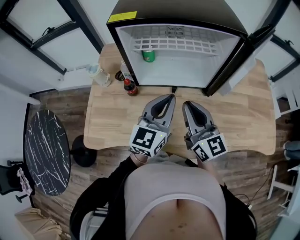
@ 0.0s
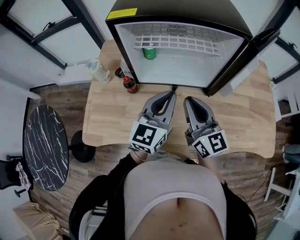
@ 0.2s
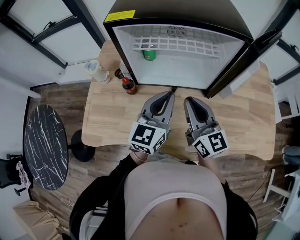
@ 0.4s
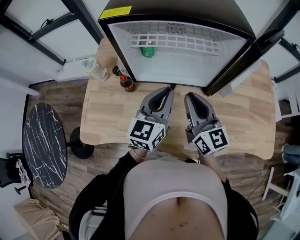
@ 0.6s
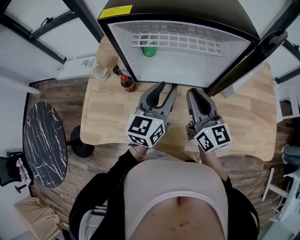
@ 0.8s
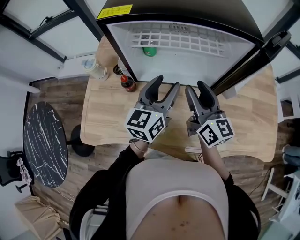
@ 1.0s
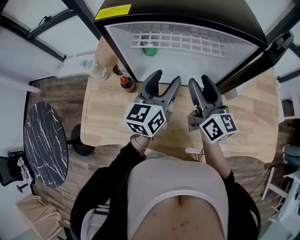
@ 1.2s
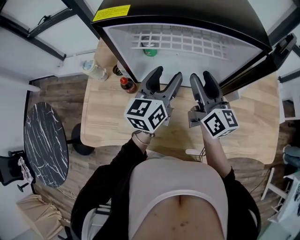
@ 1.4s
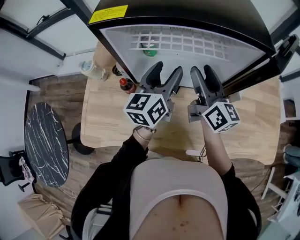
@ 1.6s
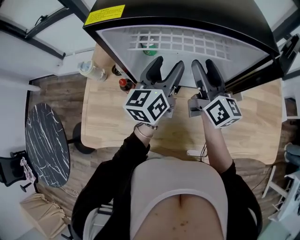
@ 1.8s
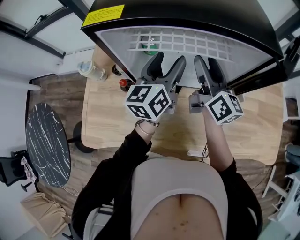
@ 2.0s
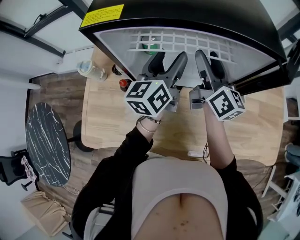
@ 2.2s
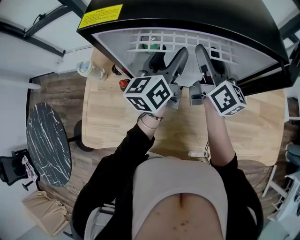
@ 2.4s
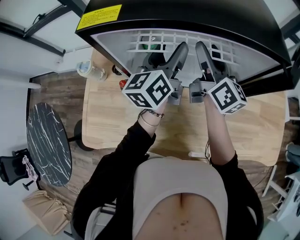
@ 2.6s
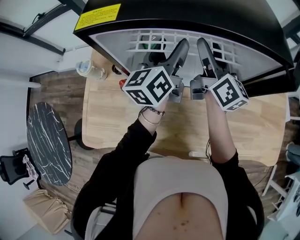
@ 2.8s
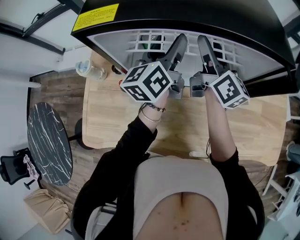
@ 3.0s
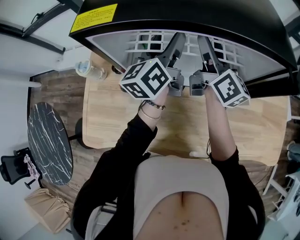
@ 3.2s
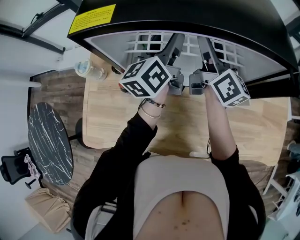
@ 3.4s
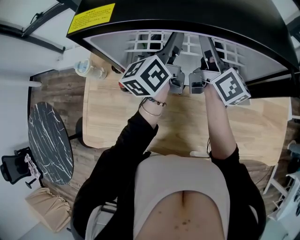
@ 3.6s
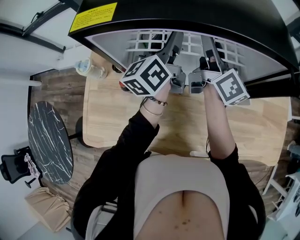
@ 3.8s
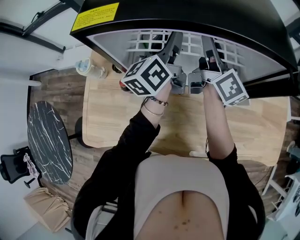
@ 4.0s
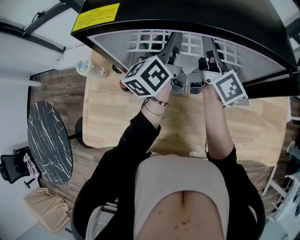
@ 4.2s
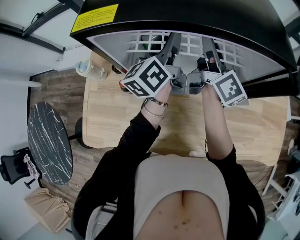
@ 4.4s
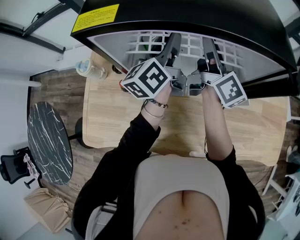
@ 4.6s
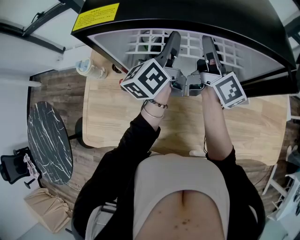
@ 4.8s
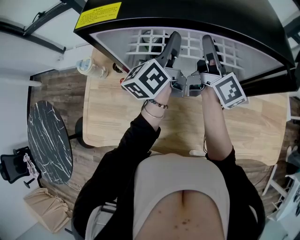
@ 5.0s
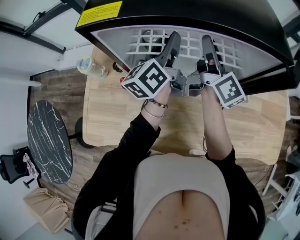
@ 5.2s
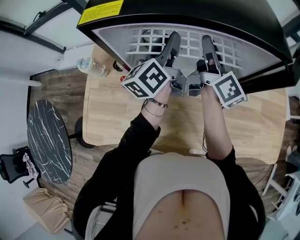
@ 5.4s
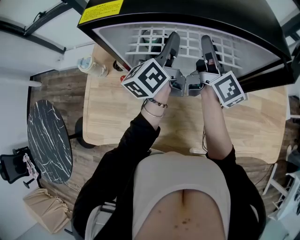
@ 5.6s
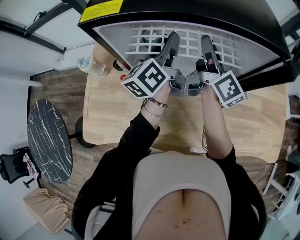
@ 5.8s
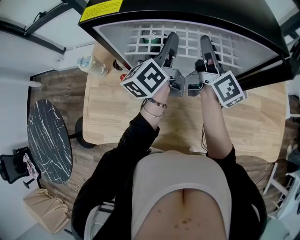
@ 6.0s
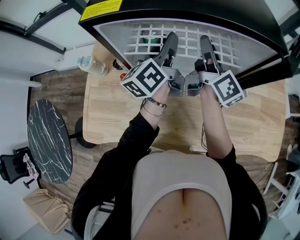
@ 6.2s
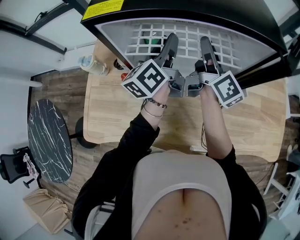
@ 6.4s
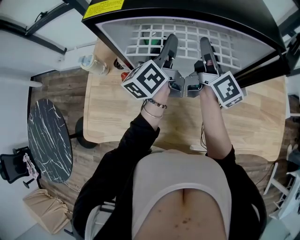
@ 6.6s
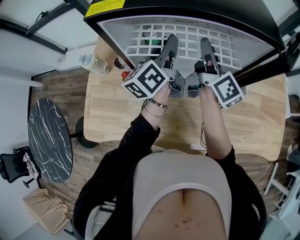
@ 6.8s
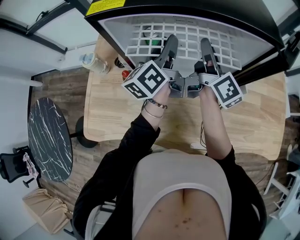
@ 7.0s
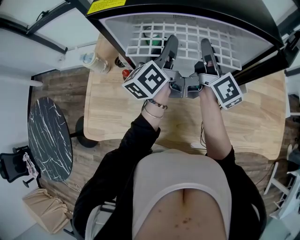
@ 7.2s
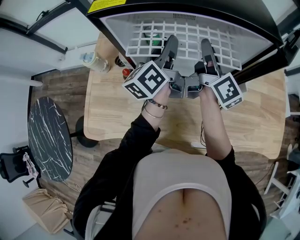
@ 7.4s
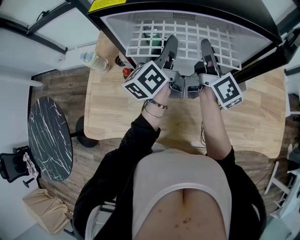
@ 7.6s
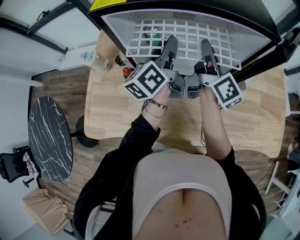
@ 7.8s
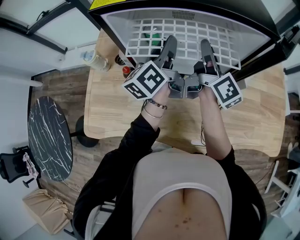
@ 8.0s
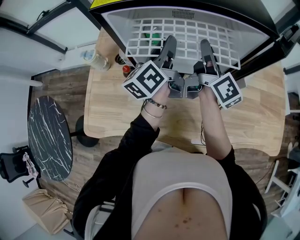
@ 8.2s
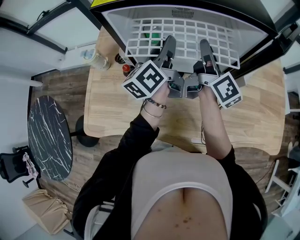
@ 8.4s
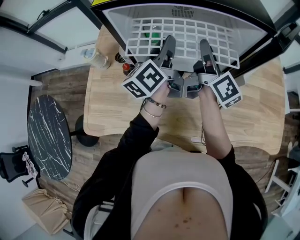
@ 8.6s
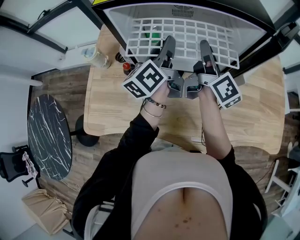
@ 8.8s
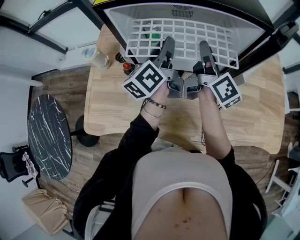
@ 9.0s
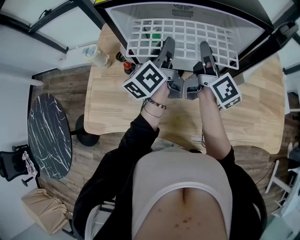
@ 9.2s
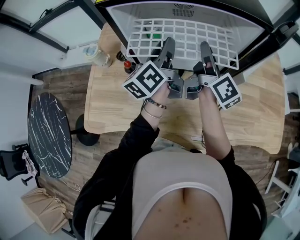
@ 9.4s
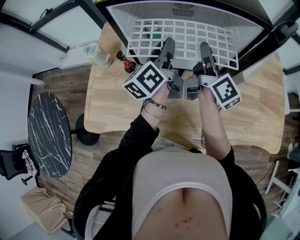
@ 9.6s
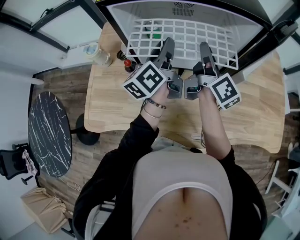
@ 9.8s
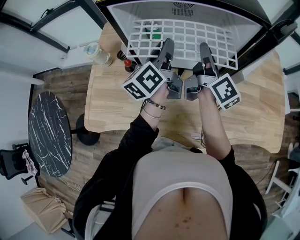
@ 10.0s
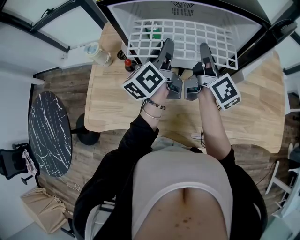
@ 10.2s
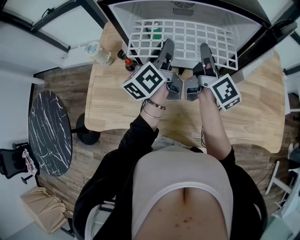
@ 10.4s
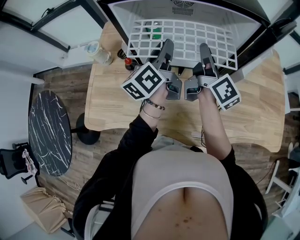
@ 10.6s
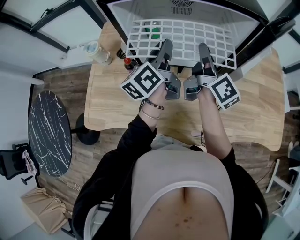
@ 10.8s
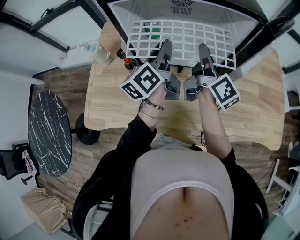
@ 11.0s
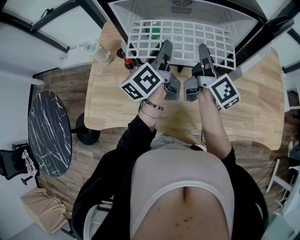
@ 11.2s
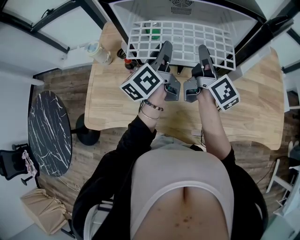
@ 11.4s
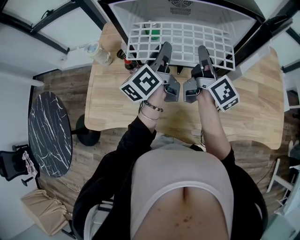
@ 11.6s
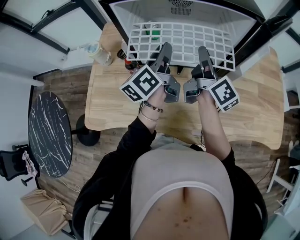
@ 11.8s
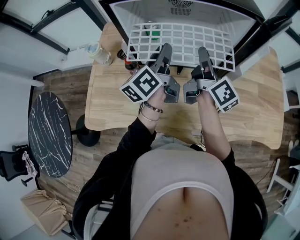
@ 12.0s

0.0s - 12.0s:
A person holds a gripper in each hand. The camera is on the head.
0.0s - 1.6s: The two grippers go approximately 15 cm forward. The left gripper swivels roughly 20 degrees, and opens; the right gripper turns by some 20 degrees, and opens its fingers.
1.6s - 3.0s: Both grippers move forward, about 10 cm.
3.0s - 4.4s: The right gripper closes its fingers.
4.4s - 6.0s: There are only small adjustments of the grippers.
6.0s - 7.6s: The grippers move only a little.
7.6s - 10.4s: The grippers move only a little.
10.4s - 12.0s: The grippers make only small movements.

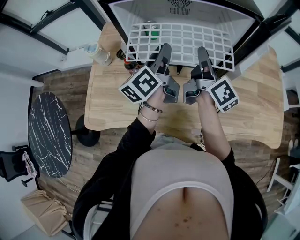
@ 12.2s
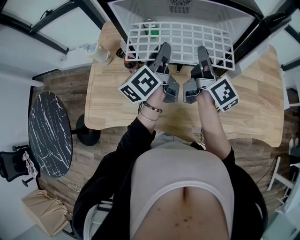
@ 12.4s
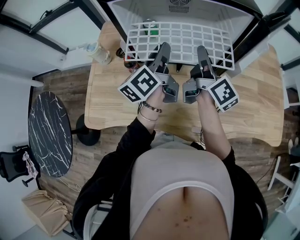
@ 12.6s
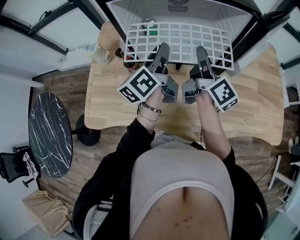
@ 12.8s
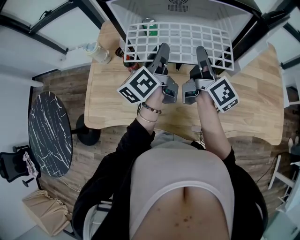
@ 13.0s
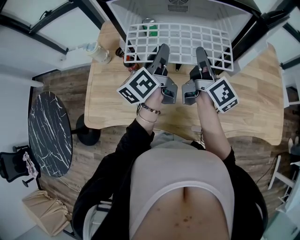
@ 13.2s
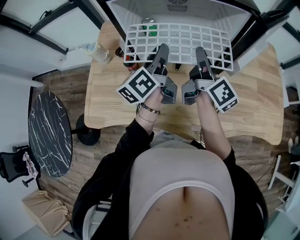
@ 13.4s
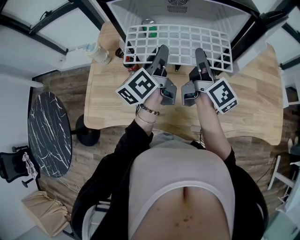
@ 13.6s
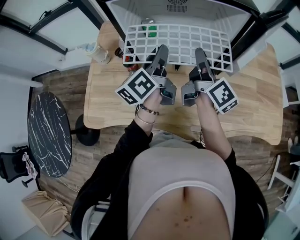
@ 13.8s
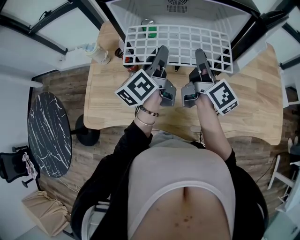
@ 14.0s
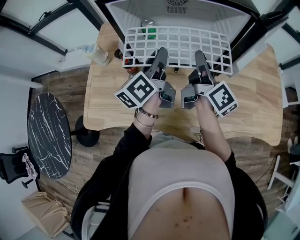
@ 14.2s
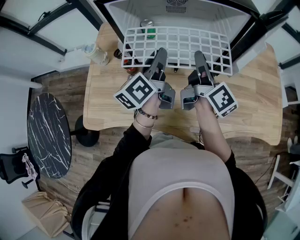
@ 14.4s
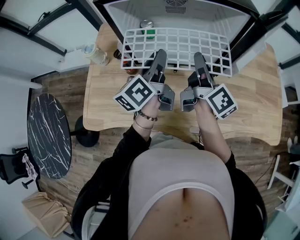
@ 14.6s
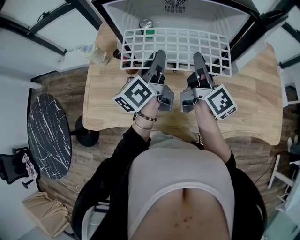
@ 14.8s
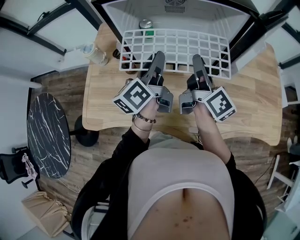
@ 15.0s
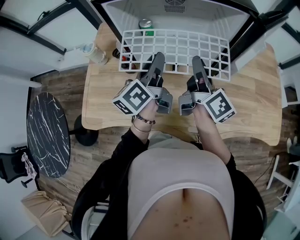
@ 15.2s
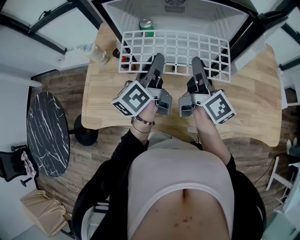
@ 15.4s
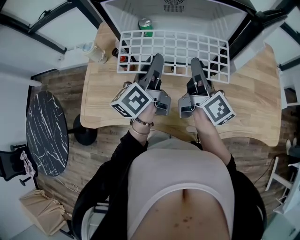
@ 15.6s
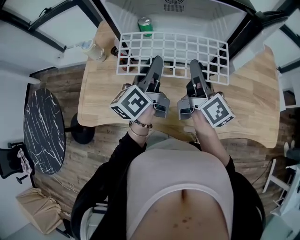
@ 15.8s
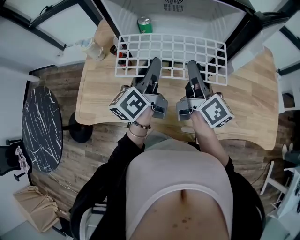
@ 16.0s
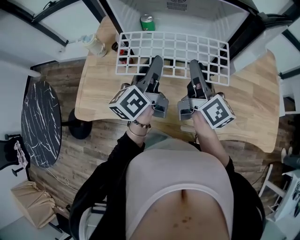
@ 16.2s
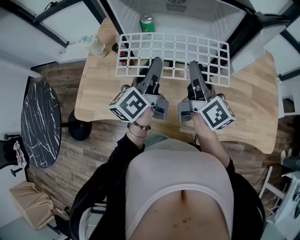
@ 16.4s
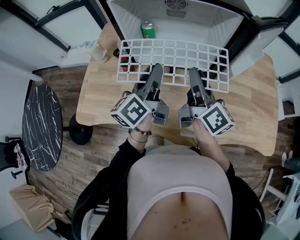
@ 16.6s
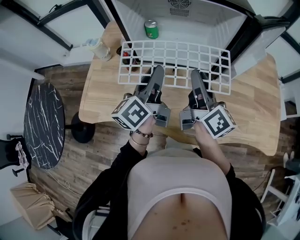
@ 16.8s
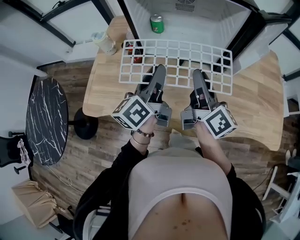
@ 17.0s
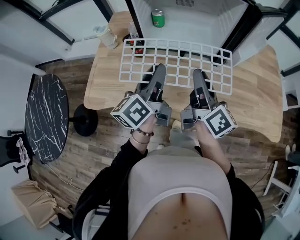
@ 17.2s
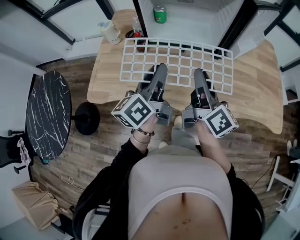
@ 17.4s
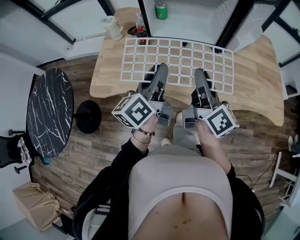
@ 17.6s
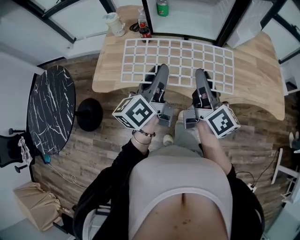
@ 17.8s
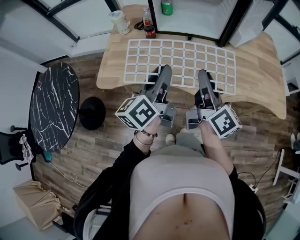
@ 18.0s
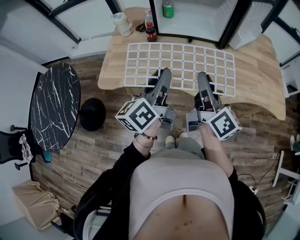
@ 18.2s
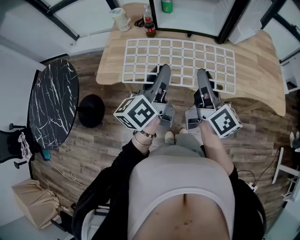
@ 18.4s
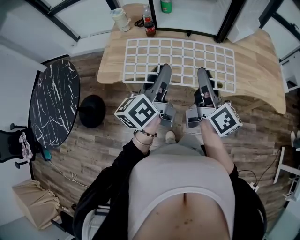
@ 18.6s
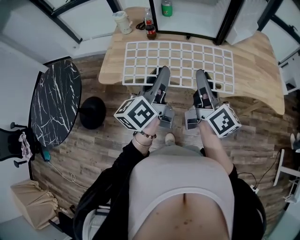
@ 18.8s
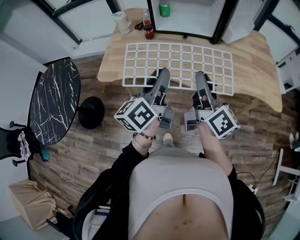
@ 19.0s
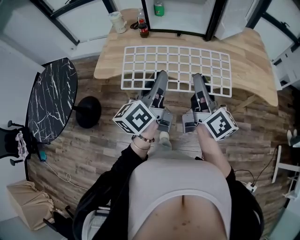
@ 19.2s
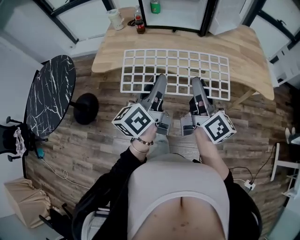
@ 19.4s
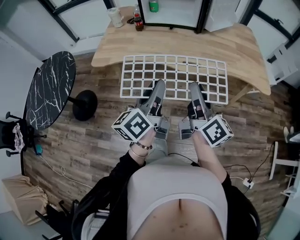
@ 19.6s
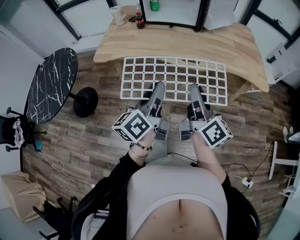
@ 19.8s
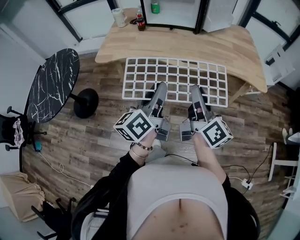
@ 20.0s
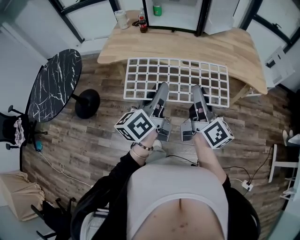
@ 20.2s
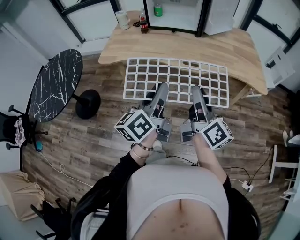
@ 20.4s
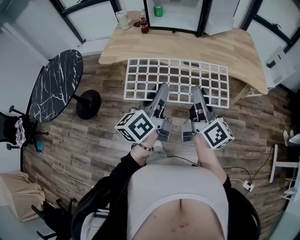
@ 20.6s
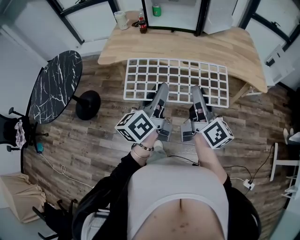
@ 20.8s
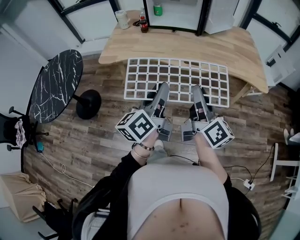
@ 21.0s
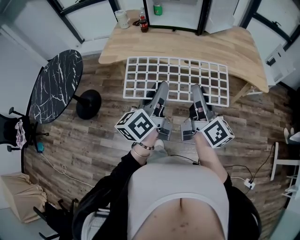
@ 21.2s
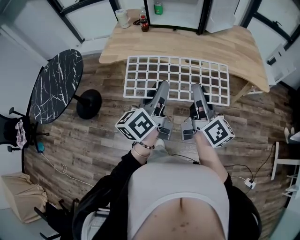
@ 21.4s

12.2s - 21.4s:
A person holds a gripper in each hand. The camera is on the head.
12.2s - 15.2s: There are only small adjustments of the grippers.
15.2s - 16.8s: The grippers both shift backward by about 5 cm.
16.8s - 18.4s: Both grippers move backward, some 25 cm.
18.4s - 19.8s: The grippers both shift backward by about 25 cm.
19.8s - 21.4s: There are only small adjustments of the grippers.

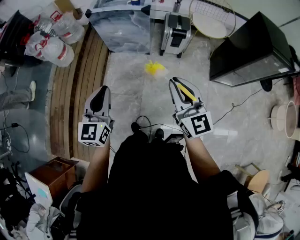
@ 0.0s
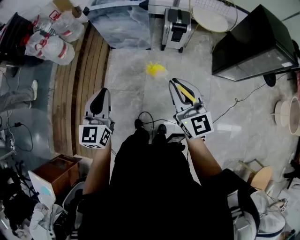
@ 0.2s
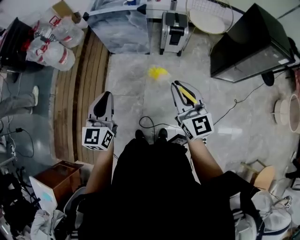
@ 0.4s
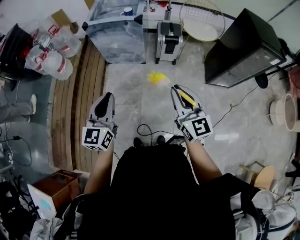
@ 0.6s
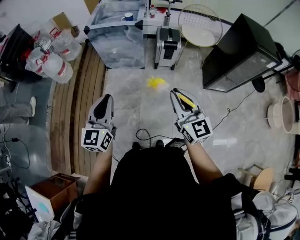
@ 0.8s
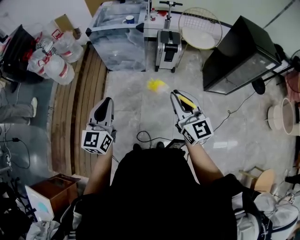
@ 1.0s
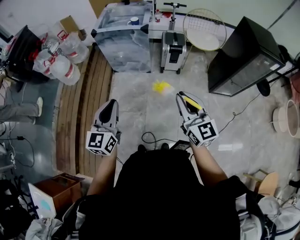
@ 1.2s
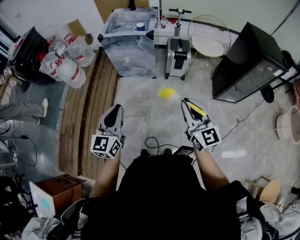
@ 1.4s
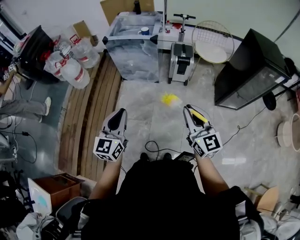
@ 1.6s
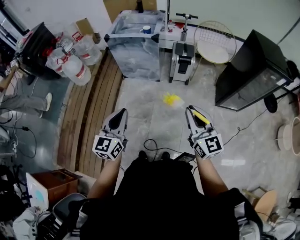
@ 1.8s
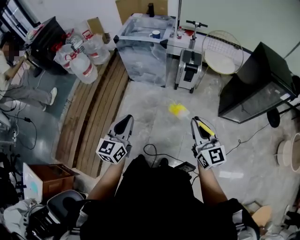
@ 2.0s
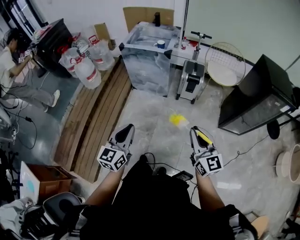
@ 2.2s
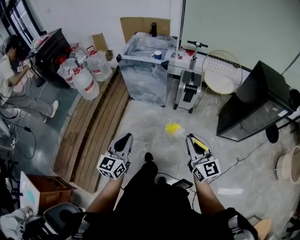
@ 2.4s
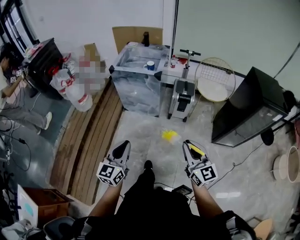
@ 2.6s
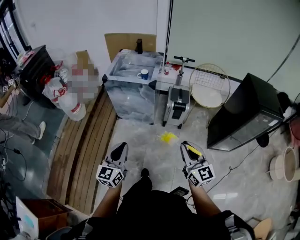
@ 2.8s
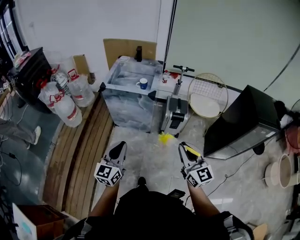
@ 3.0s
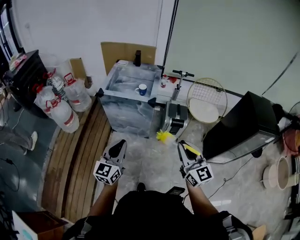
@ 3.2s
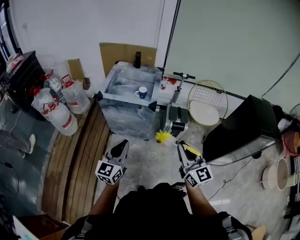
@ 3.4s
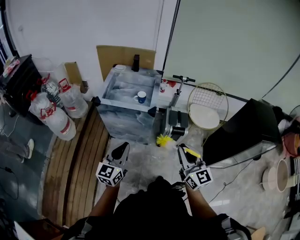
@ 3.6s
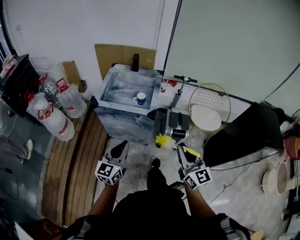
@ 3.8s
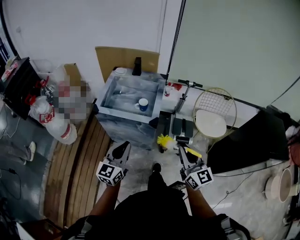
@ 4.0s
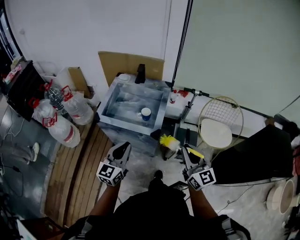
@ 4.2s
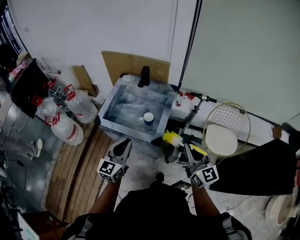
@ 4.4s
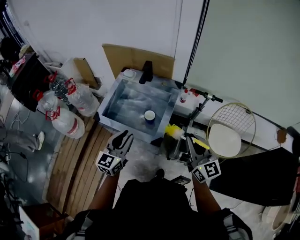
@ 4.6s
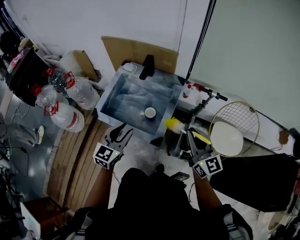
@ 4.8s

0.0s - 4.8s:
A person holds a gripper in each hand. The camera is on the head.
0.0s - 1.6s: The grippers both shift backward by roughly 10 cm.
1.6s - 3.2s: The two grippers go approximately 25 cm forward.
3.2s - 4.8s: Both grippers are carried forward, approximately 50 cm. The left gripper opens.
